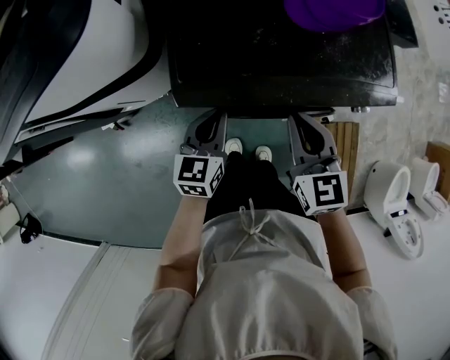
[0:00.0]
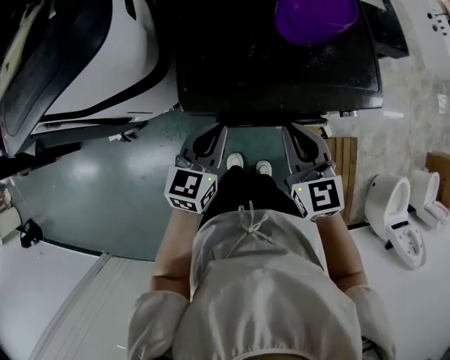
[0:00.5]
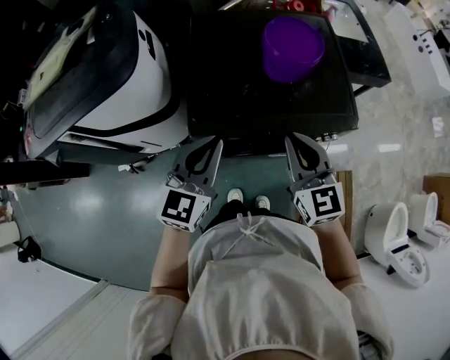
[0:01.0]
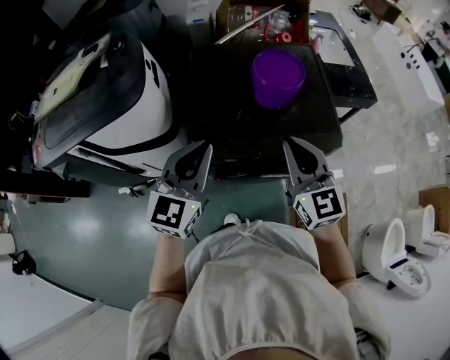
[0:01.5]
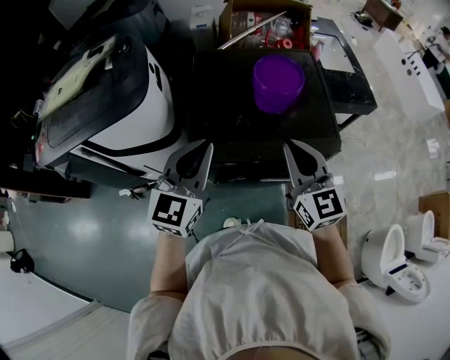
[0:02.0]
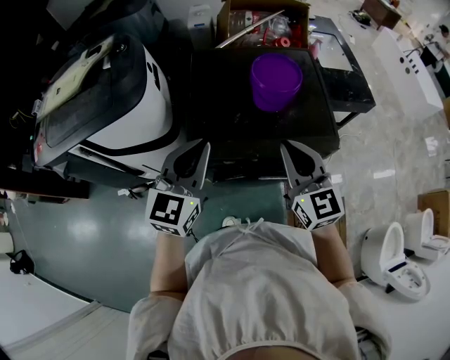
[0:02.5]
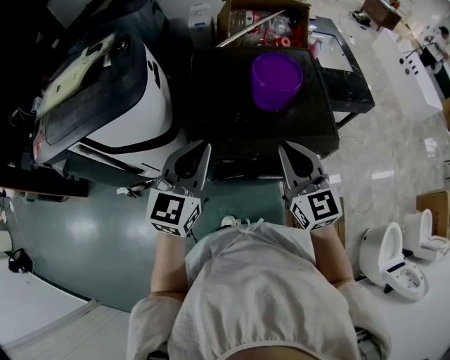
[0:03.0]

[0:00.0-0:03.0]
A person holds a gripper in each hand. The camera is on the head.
0:00.0 to 0:01.5: Both grippers move upward, approximately 25 cm. The left gripper rotates about 30 degrees, while the right gripper changes its angle by about 20 degrees.
0:01.5 to 0:03.0: The grippers make only small movements.

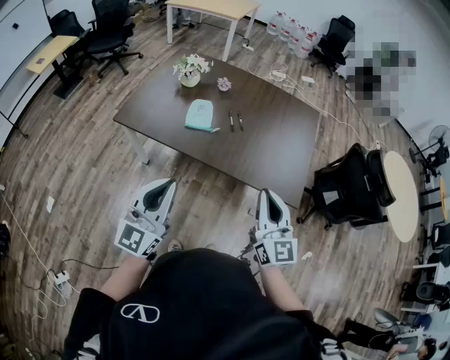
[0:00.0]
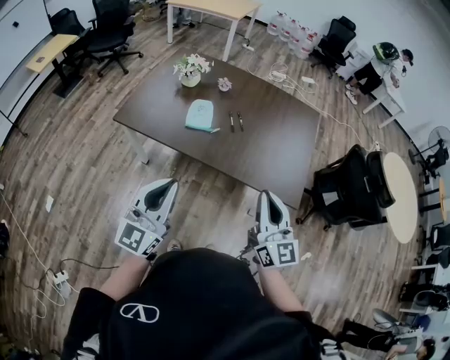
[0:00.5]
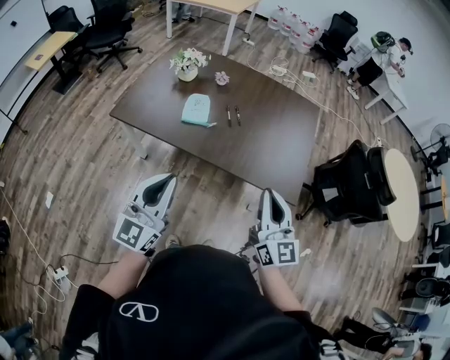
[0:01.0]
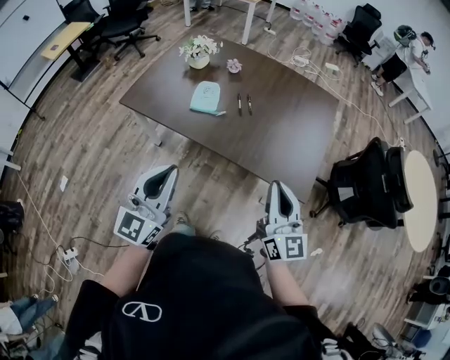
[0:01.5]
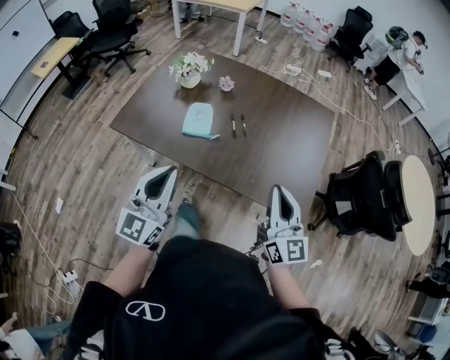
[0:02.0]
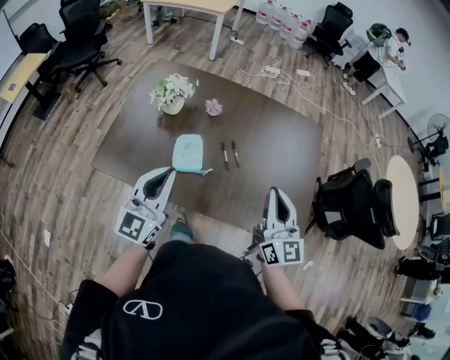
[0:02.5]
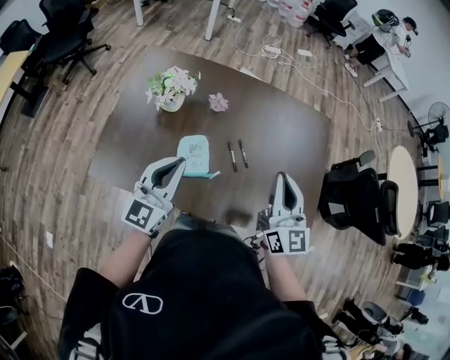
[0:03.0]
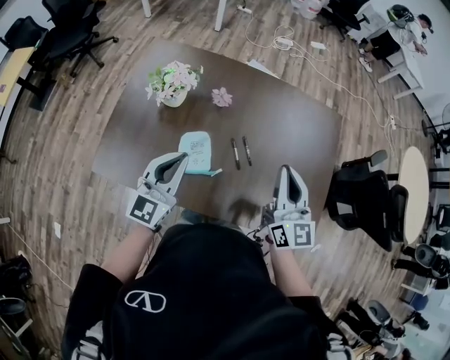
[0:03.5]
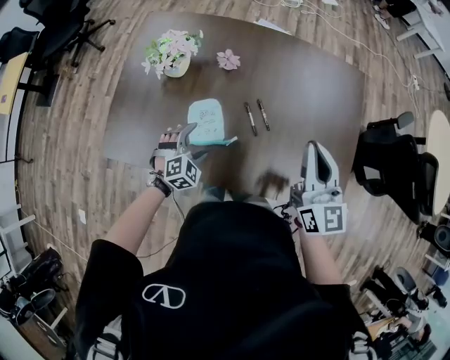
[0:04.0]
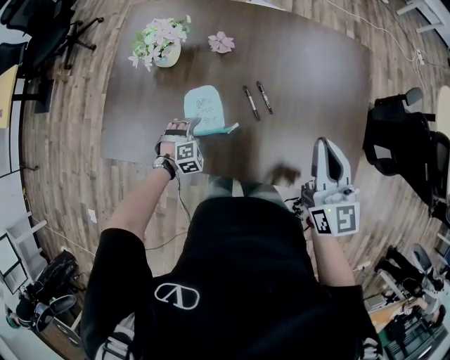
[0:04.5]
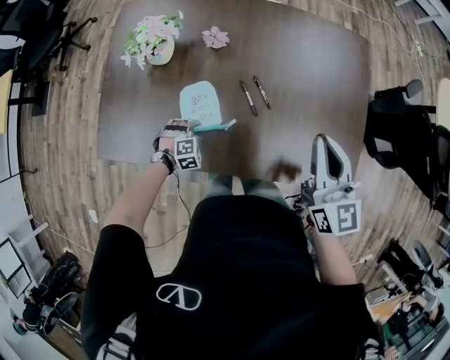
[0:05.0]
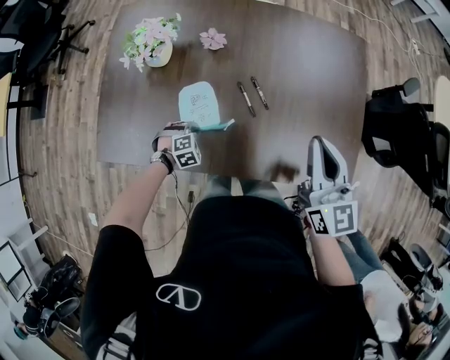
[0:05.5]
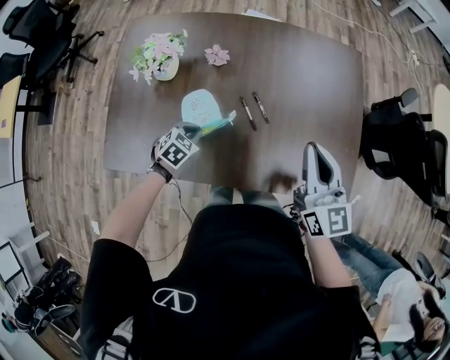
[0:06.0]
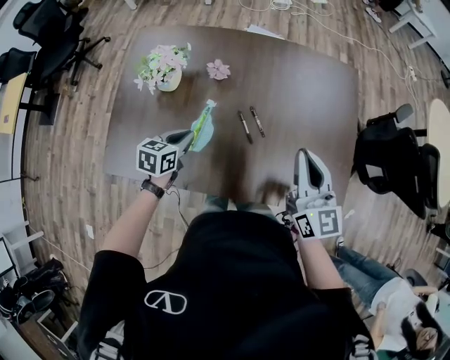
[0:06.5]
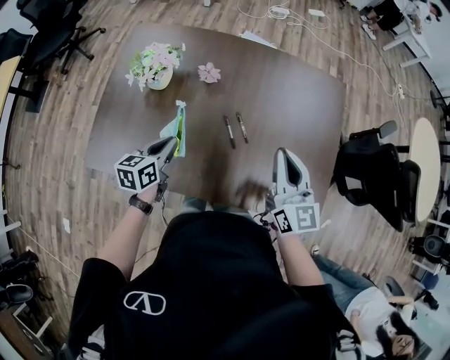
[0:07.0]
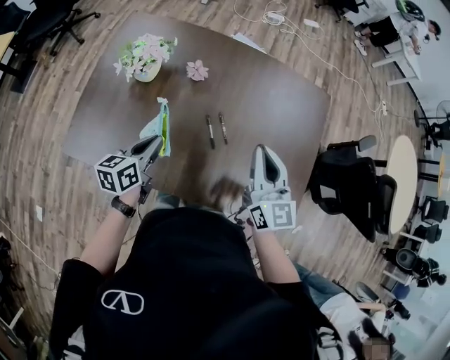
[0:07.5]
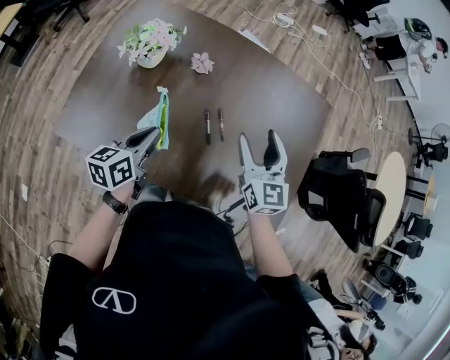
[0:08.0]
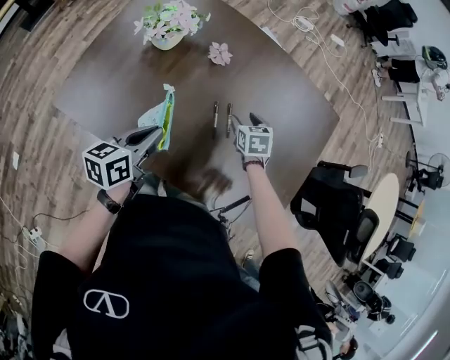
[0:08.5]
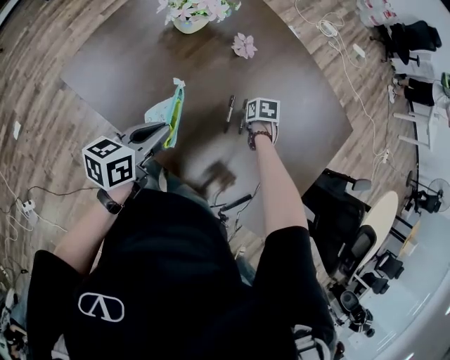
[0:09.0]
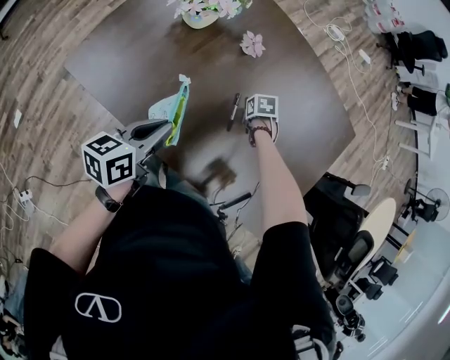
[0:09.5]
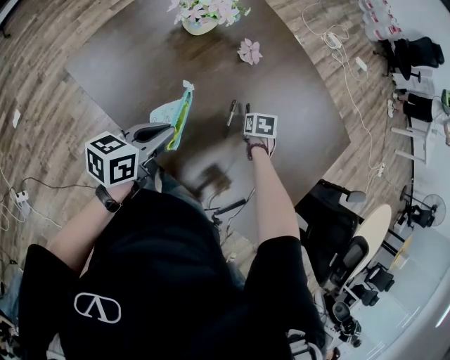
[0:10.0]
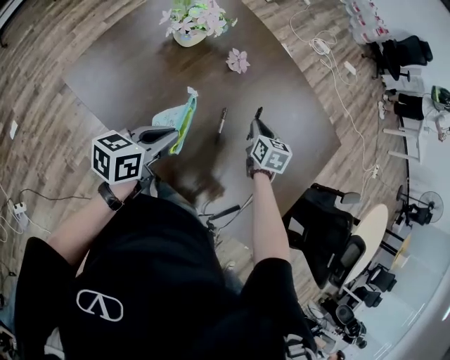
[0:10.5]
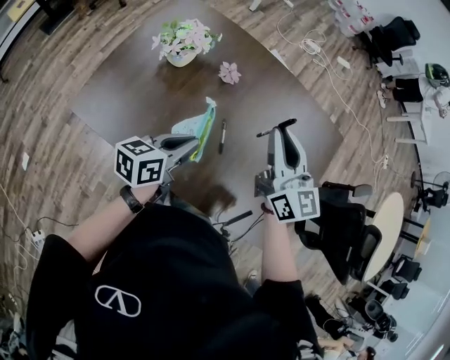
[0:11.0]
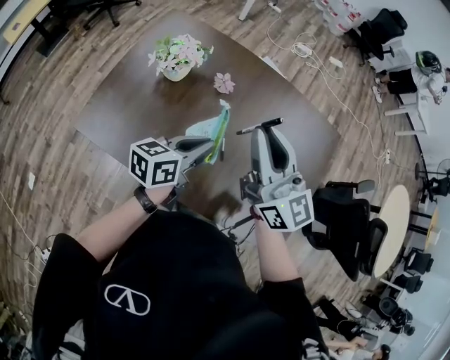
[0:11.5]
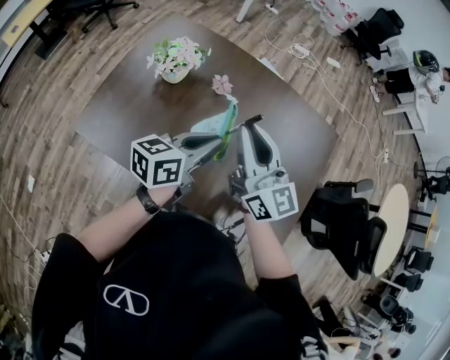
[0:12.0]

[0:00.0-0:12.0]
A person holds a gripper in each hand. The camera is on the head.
0:00.0 to 0:02.0: The right gripper heads forward and to the right, covering about 15 cm. The left gripper shifts roughly 15 cm forward.
0:02.0 to 0:04.0: The left gripper moves forward and downward, roughly 50 cm, angles its fingers downward, by roughly 60 degrees, and opens up; the right gripper heads forward, covering some 30 cm.
0:04.0 to 0:06.0: The left gripper travels downward and back again, about 15 cm each way, rotates roughly 30 degrees, and closes up.
0:06.0 to 0:08.0: The right gripper travels forward and to the left by roughly 10 cm, and opens its fingers. The left gripper is displaced upward by about 15 cm, and rolls counterclockwise, seen from behind, by about 50 degrees.
0:08.0 to 0:10.0: The left gripper changes place by approximately 5 cm. The right gripper is displaced downward by some 35 cm, angles its fingers downward, by roughly 60 degrees, and closes up.
0:10.0 to 0:12.0: The right gripper goes about 50 cm upward, and points its fingers some 80 degrees further upward. The left gripper shifts some 20 cm upward, to the right and forward, and changes its angle by about 20 degrees.

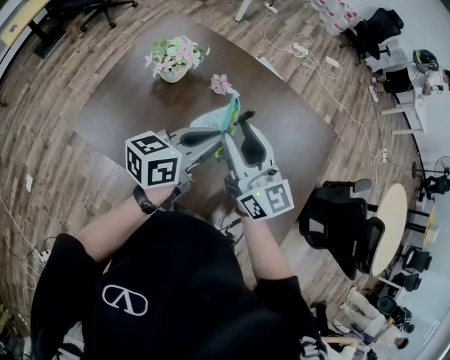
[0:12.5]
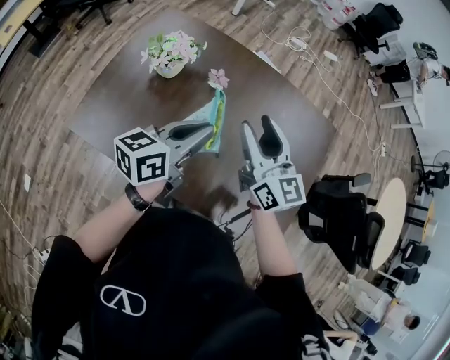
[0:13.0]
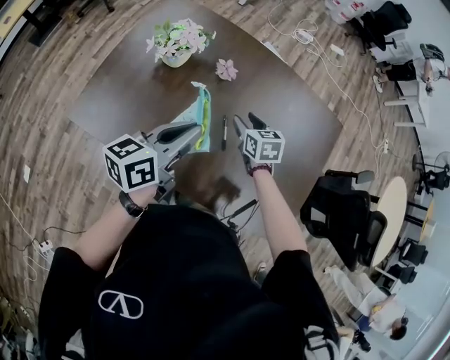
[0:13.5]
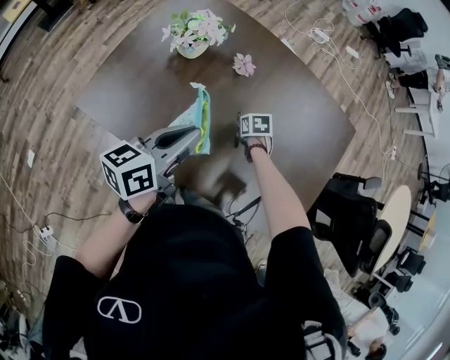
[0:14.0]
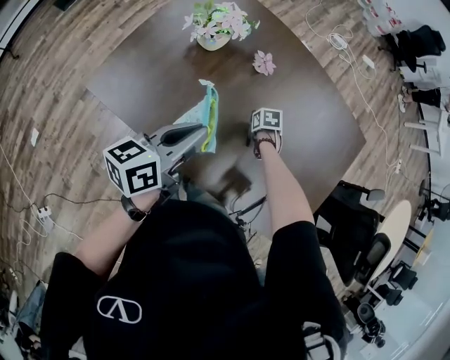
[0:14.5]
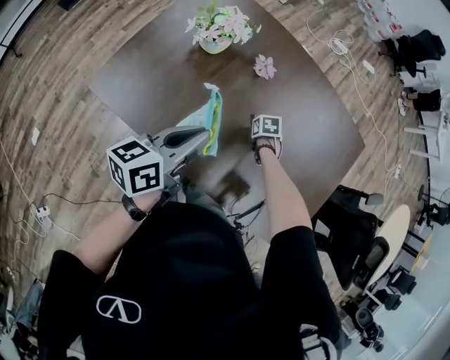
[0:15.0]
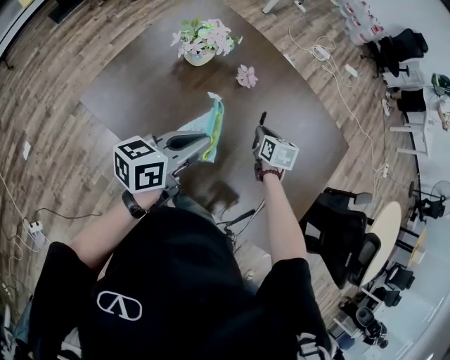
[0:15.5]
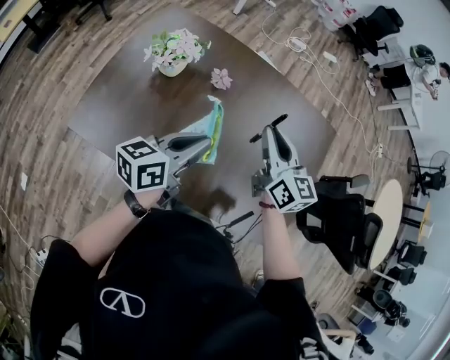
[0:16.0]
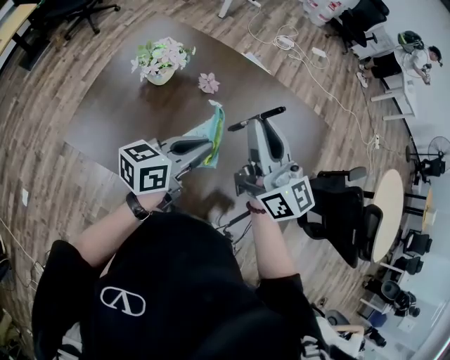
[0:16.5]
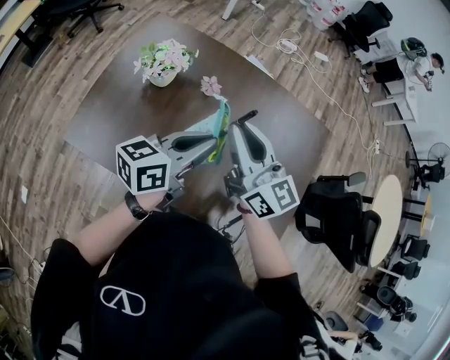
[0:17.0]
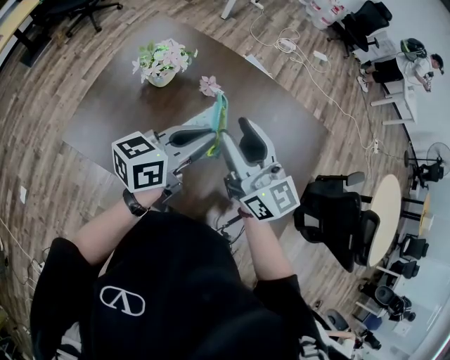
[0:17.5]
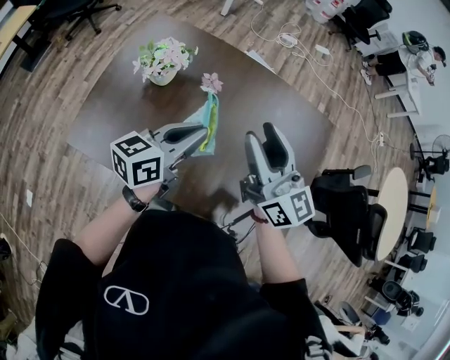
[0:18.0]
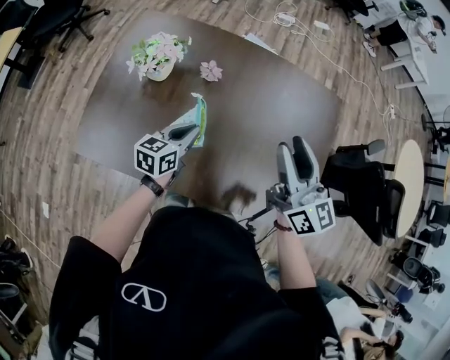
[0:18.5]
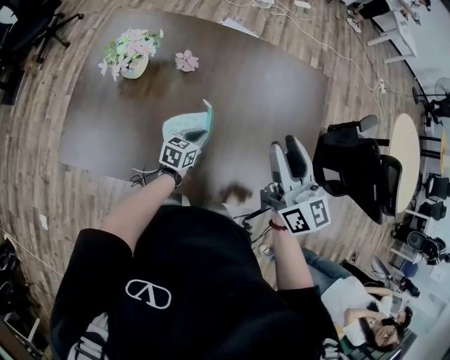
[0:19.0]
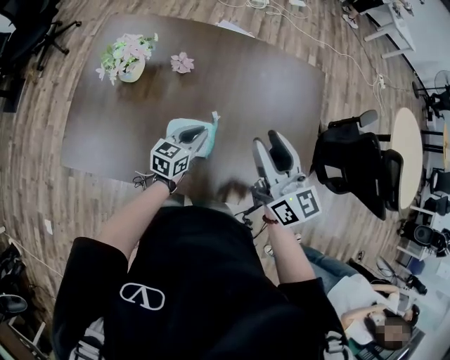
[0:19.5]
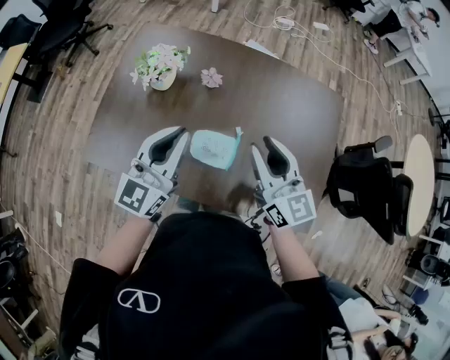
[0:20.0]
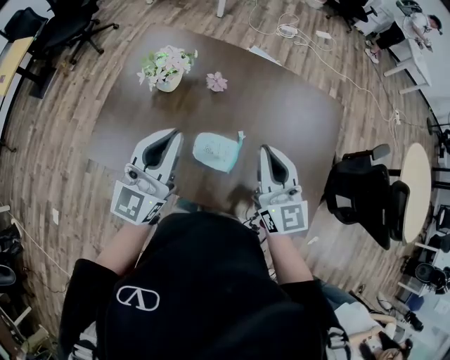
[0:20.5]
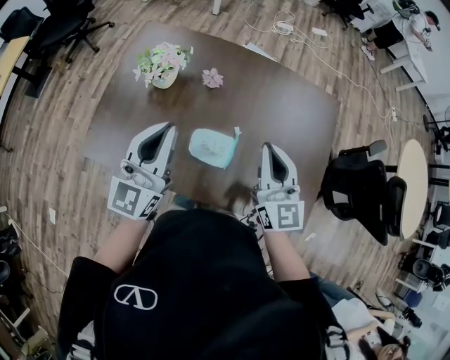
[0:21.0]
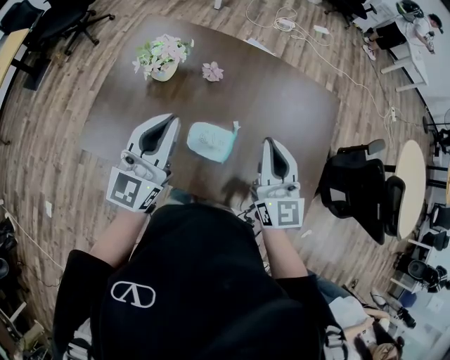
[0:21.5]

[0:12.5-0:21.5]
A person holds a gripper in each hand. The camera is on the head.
0:12.5 to 0:14.5: The right gripper travels downward by some 50 cm, and tilts its fingers some 80 degrees downward, while the left gripper changes place by some 15 cm.
0:14.5 to 0:17.0: The left gripper moves roughly 15 cm, and rotates approximately 20 degrees; the right gripper goes approximately 50 cm upward, and tips its fingers upward by approximately 90 degrees.
0:17.0 to 0:19.5: The left gripper heads downward, covering approximately 25 cm, and changes its angle by approximately 20 degrees, while the right gripper shifts approximately 15 cm to the right, turns by about 20 degrees, and opens up.
0:19.5 to 0:21.5: The right gripper moves to the left, some 5 cm, changes its angle by about 20 degrees, and closes up. The left gripper moves upward and to the left, about 30 cm, and rotates roughly 40 degrees.

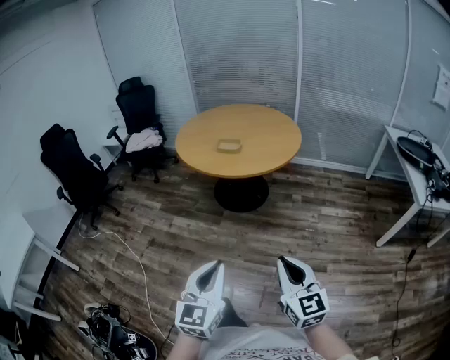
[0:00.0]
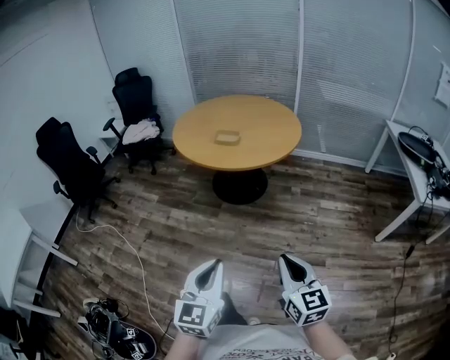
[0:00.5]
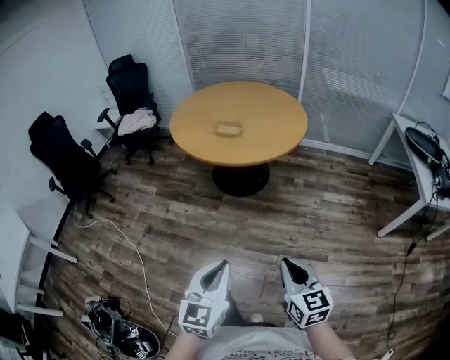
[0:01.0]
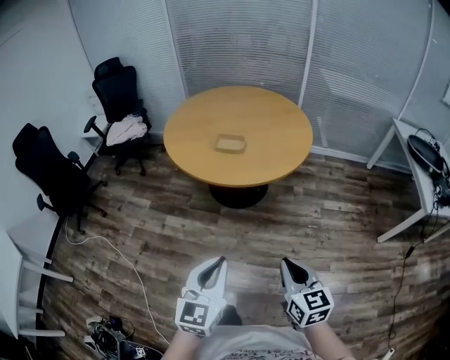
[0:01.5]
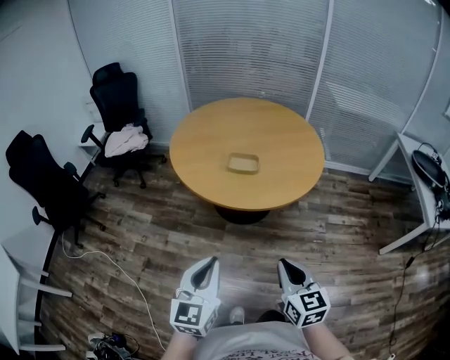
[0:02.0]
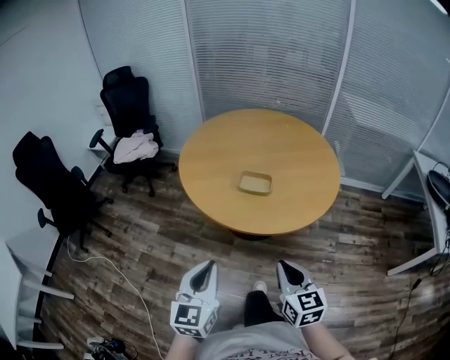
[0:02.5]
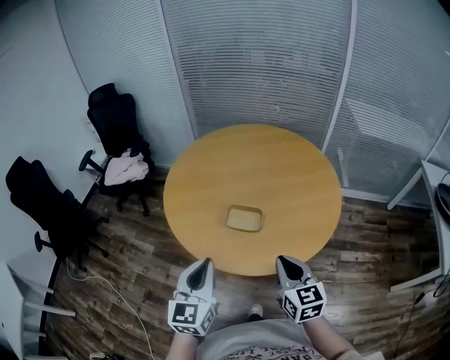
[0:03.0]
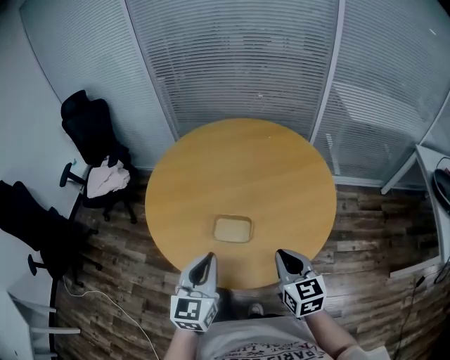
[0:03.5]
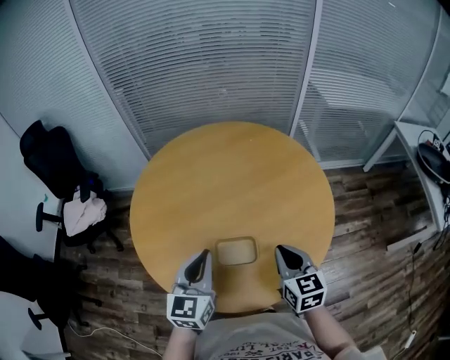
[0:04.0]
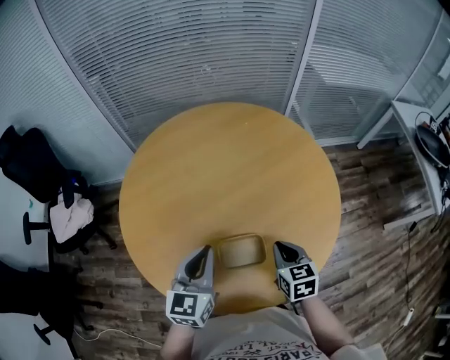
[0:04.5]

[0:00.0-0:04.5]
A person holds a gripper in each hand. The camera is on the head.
0:00.0 to 0:02.0: The two grippers go about 35 cm forward and to the left.
0:02.0 to 0:04.5: The two grippers travel together, forward, roughly 60 cm. The left gripper swivels roughly 20 degrees; the right gripper rotates roughly 30 degrees.
